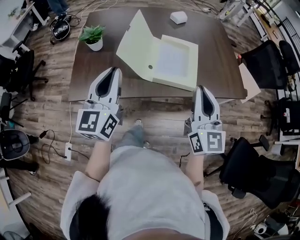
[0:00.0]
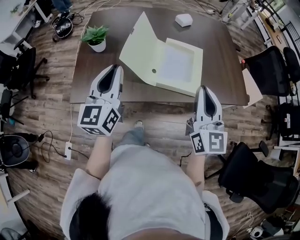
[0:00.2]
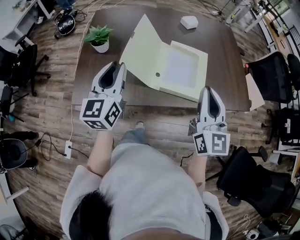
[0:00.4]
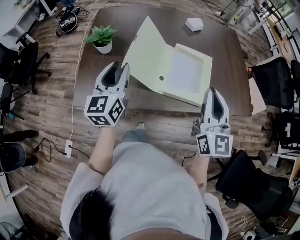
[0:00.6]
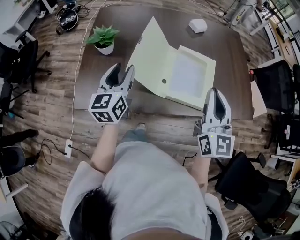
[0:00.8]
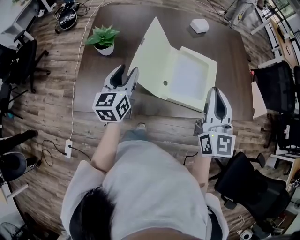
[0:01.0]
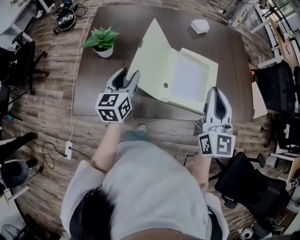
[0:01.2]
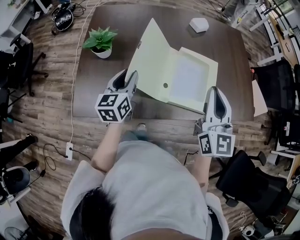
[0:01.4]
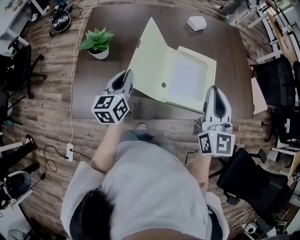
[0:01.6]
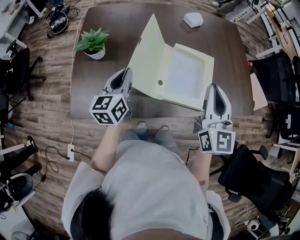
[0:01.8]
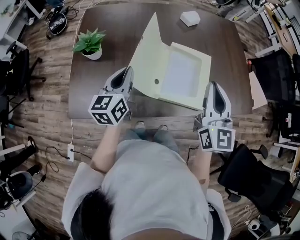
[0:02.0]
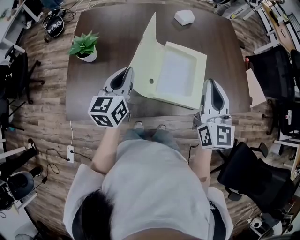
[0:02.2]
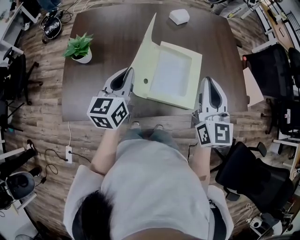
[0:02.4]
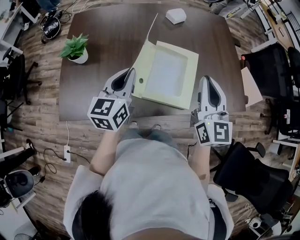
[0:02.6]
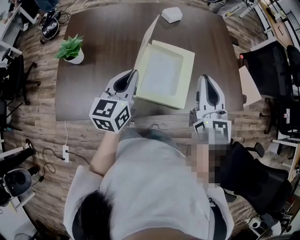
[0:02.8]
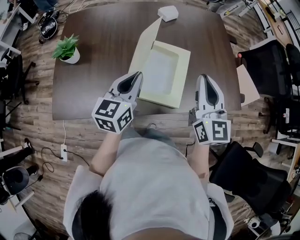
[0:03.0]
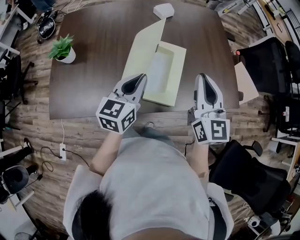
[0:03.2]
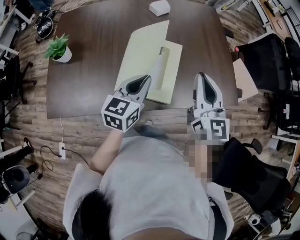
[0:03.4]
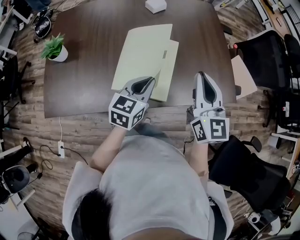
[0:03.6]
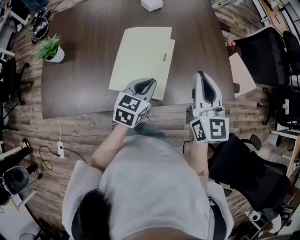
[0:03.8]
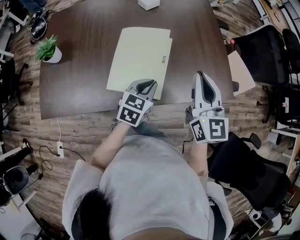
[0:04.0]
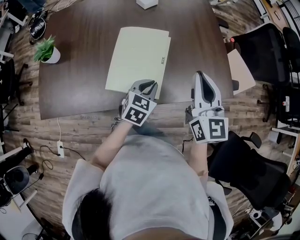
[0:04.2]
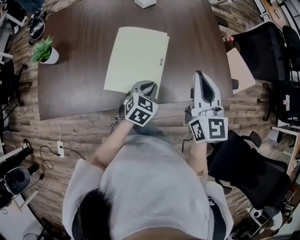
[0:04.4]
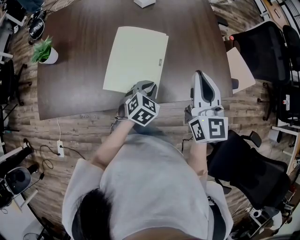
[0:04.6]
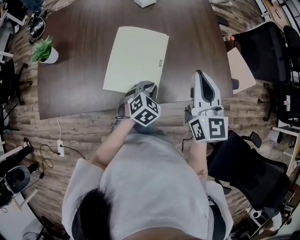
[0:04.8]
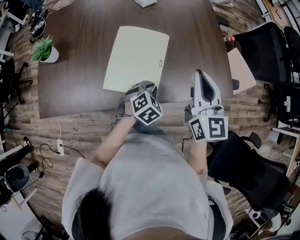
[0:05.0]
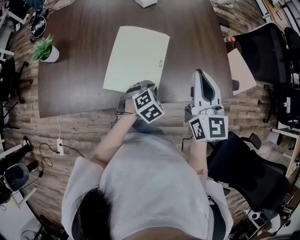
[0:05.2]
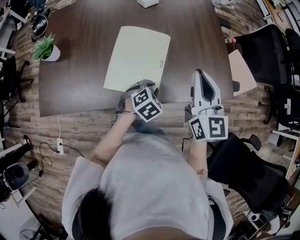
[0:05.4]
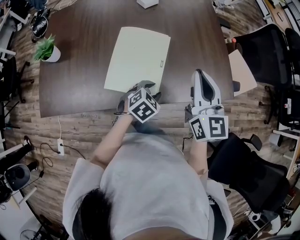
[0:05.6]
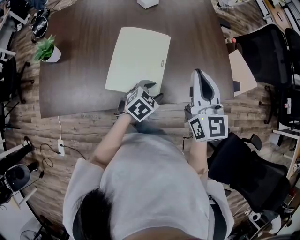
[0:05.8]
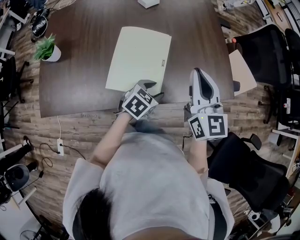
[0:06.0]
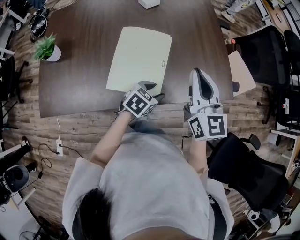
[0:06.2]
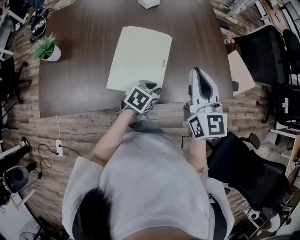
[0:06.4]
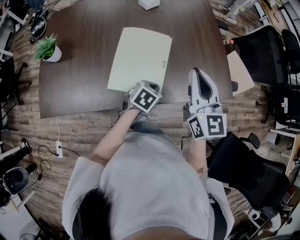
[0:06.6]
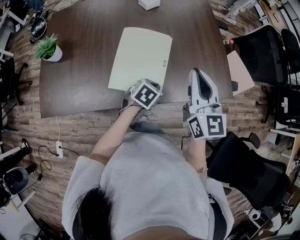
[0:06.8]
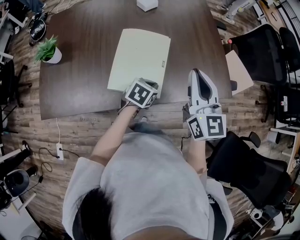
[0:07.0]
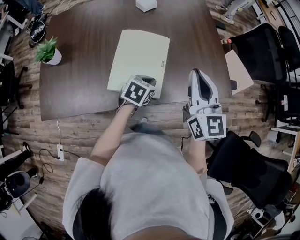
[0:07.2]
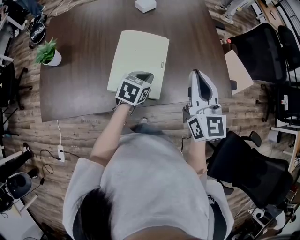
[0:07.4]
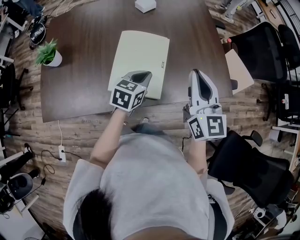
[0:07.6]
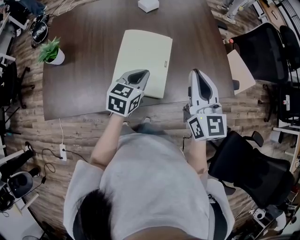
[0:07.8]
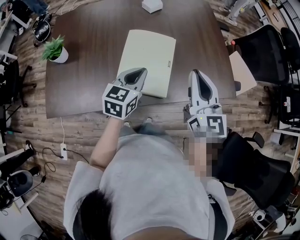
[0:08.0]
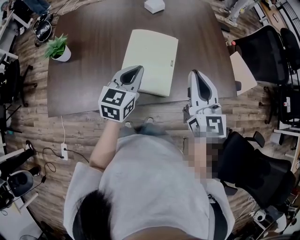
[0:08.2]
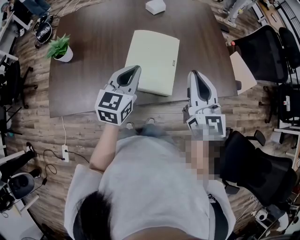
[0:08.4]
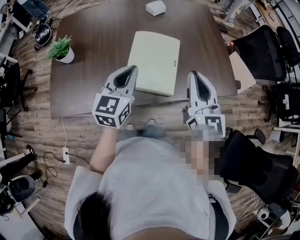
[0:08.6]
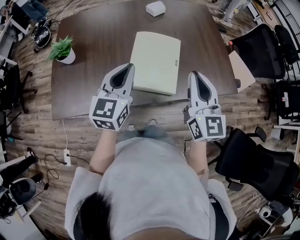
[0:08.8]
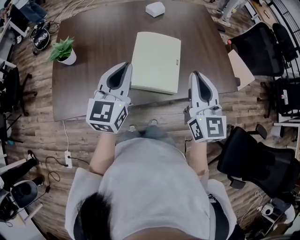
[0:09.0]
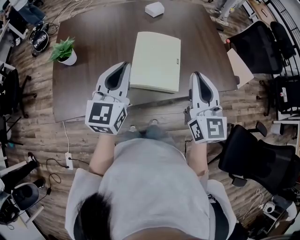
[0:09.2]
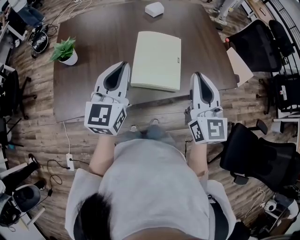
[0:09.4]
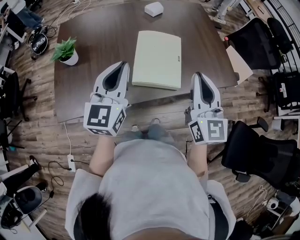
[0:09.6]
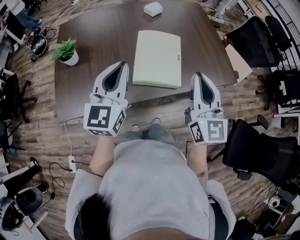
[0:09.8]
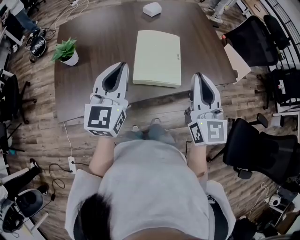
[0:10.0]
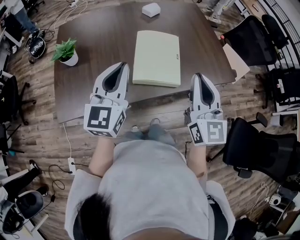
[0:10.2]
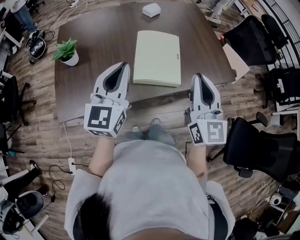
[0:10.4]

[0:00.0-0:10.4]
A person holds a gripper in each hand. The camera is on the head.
0:00.0 to 0:01.4: The left gripper heads forward and downward, covering some 25 cm, turns by about 20 degrees, and opens up. The right gripper travels forward by roughly 15 cm.
0:01.4 to 0:03.0: The left gripper moves to the right, approximately 20 cm, and closes; the right gripper moves to the right, some 15 cm.
0:03.0 to 0:04.4: The right gripper goes approximately 10 cm to the right. The left gripper travels to the right and downward by about 25 cm, and changes its angle by some 40 degrees.
0:04.4 to 0:06.0: The left gripper opens.
0:06.0 to 0:07.4: The left gripper goes approximately 5 cm to the left, and closes.
0:07.4 to 0:09.0: The right gripper moves to the left and backward, approximately 10 cm; the left gripper goes about 25 cm upward, to the left and backward, and tips its fingers upward by about 40 degrees.
0:09.0 to 0:10.4: Both grippers move backward, some 5 cm.

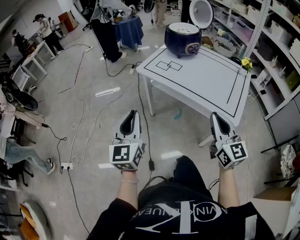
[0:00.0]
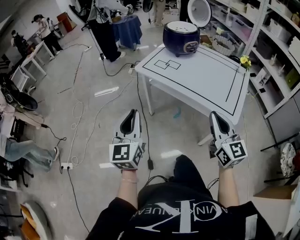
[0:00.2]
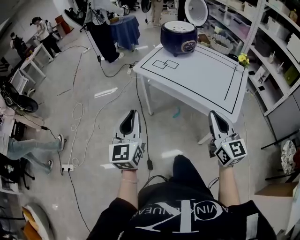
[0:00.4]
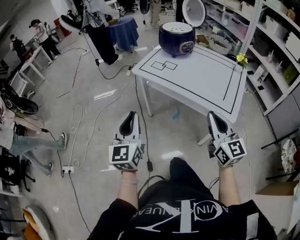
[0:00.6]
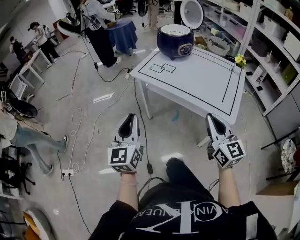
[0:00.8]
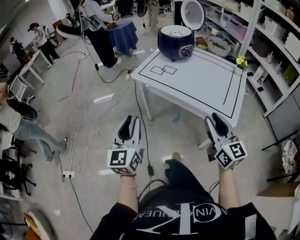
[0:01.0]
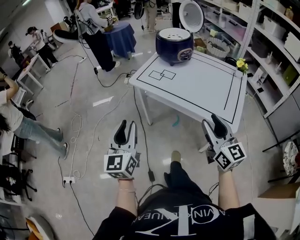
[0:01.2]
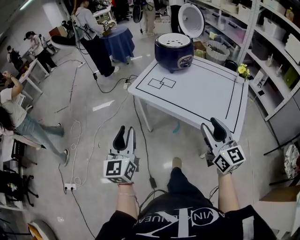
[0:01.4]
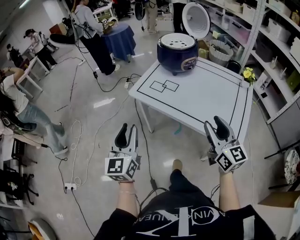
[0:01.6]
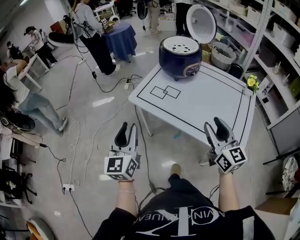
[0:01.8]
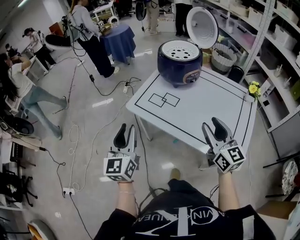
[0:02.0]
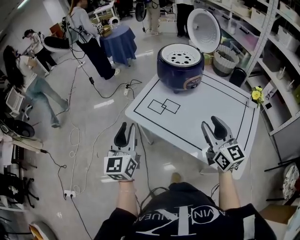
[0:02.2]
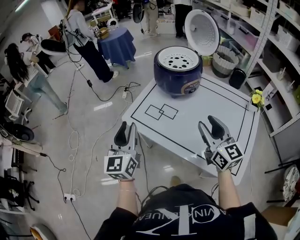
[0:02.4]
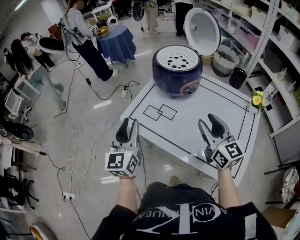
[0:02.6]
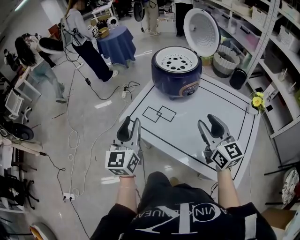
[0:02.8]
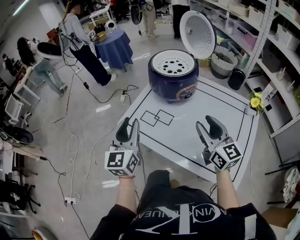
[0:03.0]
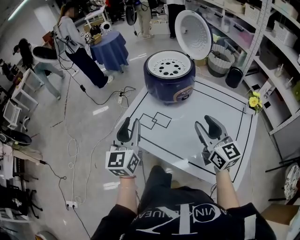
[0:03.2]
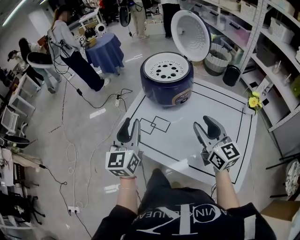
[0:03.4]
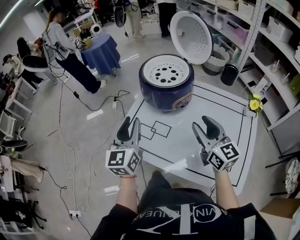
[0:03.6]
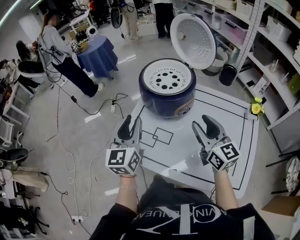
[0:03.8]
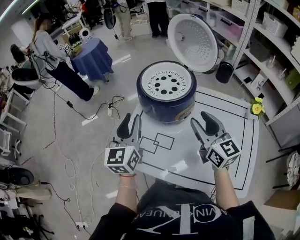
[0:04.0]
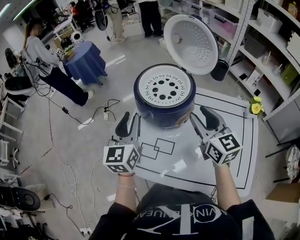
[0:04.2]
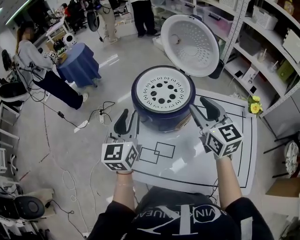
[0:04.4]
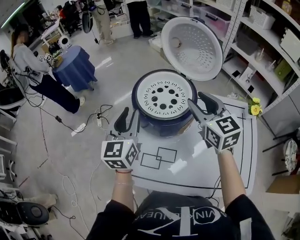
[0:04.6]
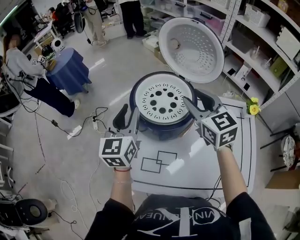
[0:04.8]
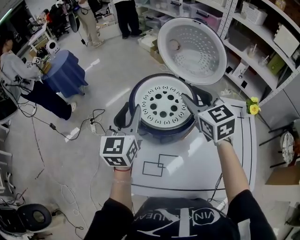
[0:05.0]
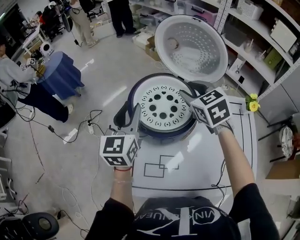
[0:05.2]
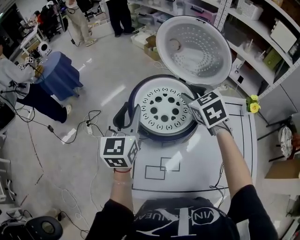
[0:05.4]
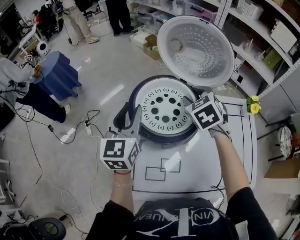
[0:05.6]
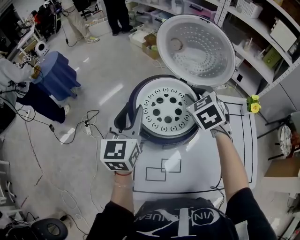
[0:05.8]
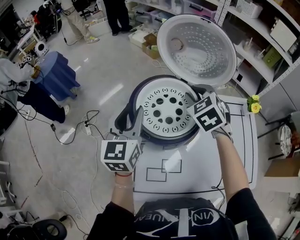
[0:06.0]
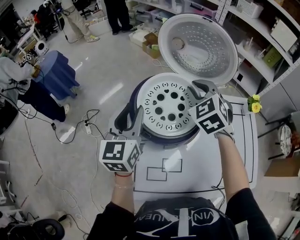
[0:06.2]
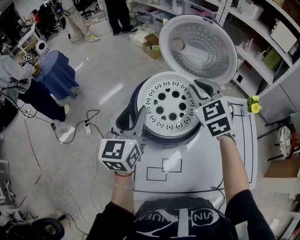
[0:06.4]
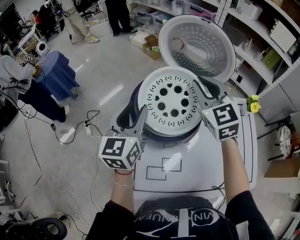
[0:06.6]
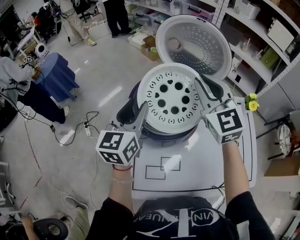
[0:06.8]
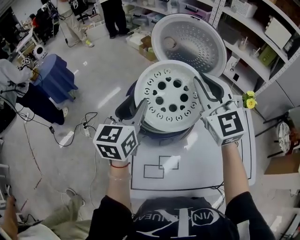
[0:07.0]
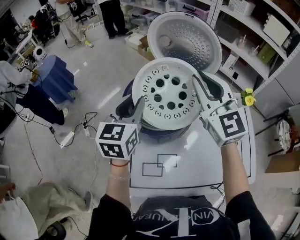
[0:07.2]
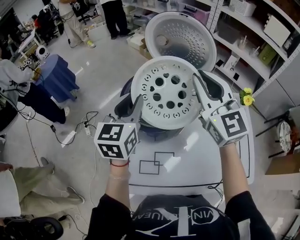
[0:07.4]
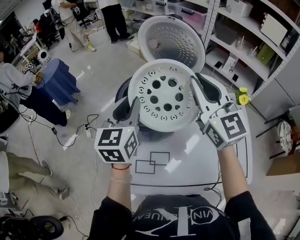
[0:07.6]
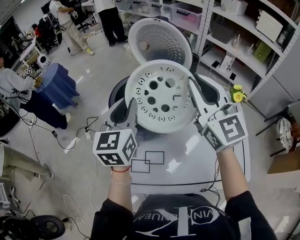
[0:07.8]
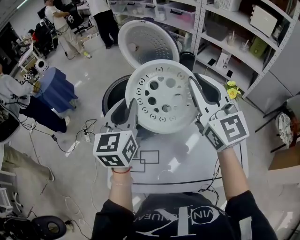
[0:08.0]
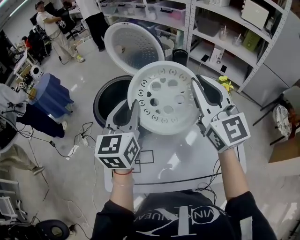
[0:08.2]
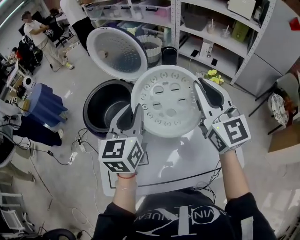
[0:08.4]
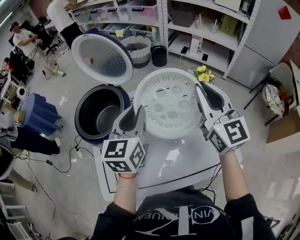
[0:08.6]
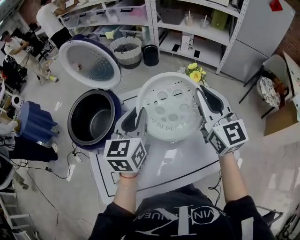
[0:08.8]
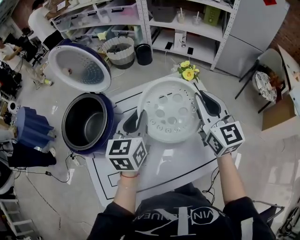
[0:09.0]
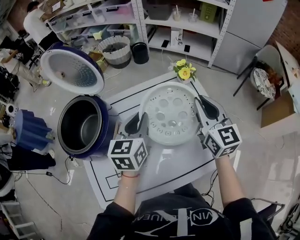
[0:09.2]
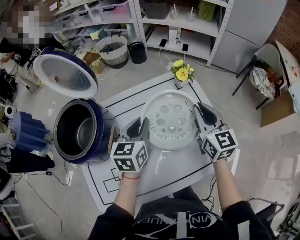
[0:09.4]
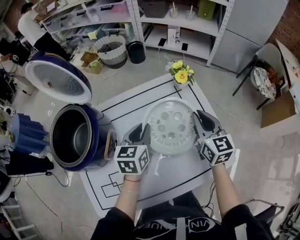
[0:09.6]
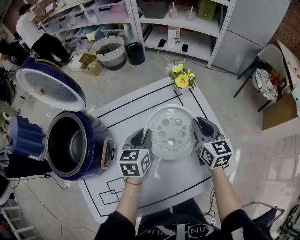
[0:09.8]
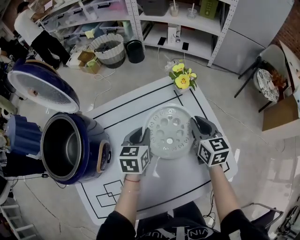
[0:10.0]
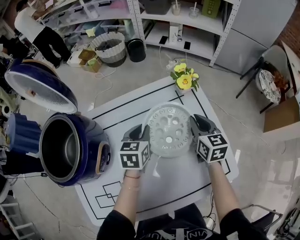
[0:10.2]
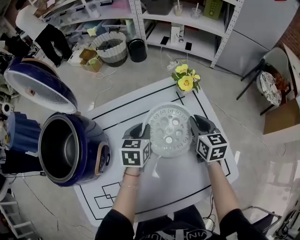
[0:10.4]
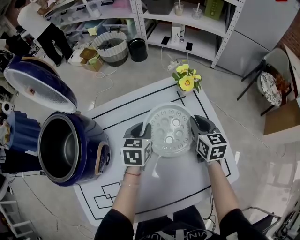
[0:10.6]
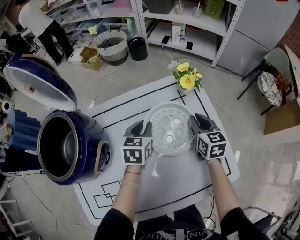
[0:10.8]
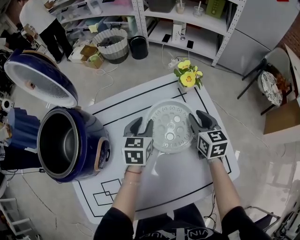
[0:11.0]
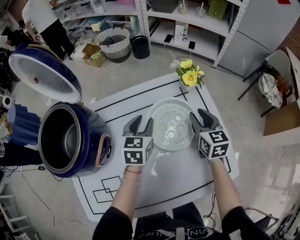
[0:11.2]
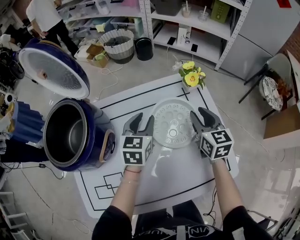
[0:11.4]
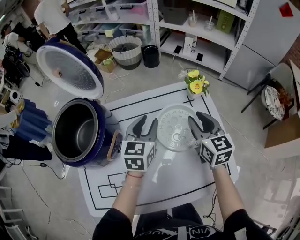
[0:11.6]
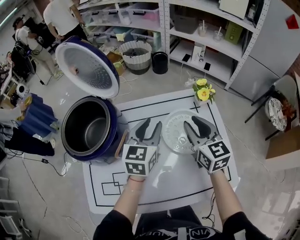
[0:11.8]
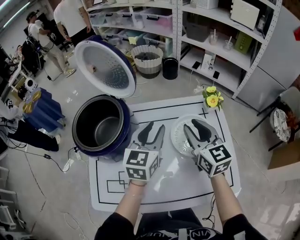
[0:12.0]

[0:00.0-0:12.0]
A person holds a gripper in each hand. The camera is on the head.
0:00.0 to 0:01.6: Both grippers move forward, about 15 cm. The right gripper opens.
0:01.6 to 0:03.0: The left gripper travels forward and to the right by about 25 cm. The right gripper goes approximately 25 cm forward.
0:03.0 to 0:04.4: The two grippers go approximately 25 cm forward. The right gripper rotates about 20 degrees.
0:04.4 to 0:06.0: Both grippers move forward, some 15 cm. The right gripper angles its fingers downward, by roughly 30 degrees.
0:06.0 to 0:07.6: The right gripper goes approximately 20 cm upward, backward and to the right, and tips its fingers upward by roughly 50 degrees, while the left gripper is displaced to the right by roughly 10 cm.
0:07.6 to 0:09.0: The right gripper ends up about 30 cm from where it was, and turns by approximately 30 degrees. The left gripper changes place by some 25 cm, and changes its angle by approximately 30 degrees.
0:09.0 to 0:10.4: The left gripper moves downward and forward, about 20 cm, and rotates about 20 degrees; the right gripper shifts some 25 cm downward, and changes its angle by about 30 degrees.
0:10.4 to 0:12.0: The right gripper is displaced upward and to the left by approximately 20 cm, and swivels about 30 degrees. Meanwhile the left gripper travels upward by approximately 15 cm, and changes its angle by roughly 30 degrees.

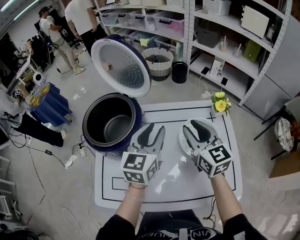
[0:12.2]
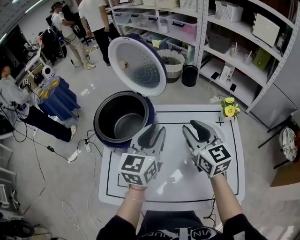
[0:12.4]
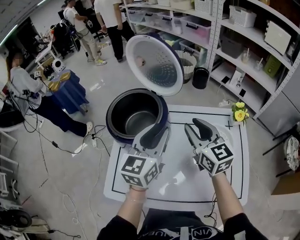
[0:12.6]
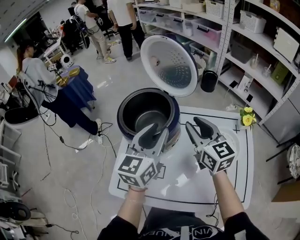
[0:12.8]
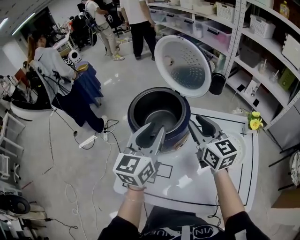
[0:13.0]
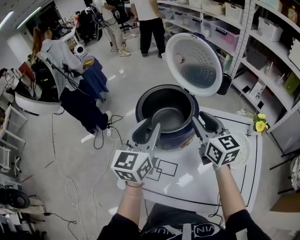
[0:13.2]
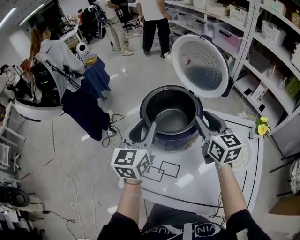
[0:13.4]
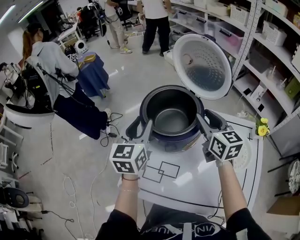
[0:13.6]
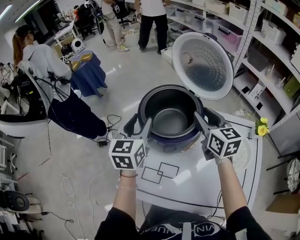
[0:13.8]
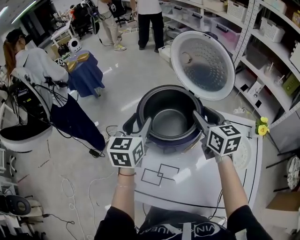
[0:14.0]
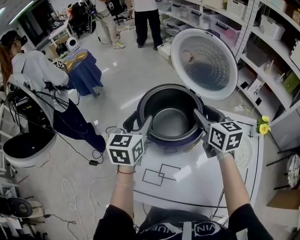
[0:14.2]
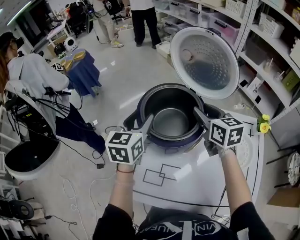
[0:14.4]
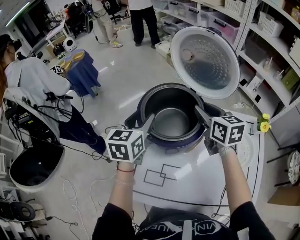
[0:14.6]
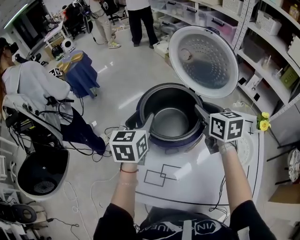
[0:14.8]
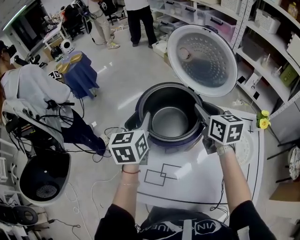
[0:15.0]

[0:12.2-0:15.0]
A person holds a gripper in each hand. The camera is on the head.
0:12.2 to 0:13.6: The right gripper moves to the left and forward, approximately 20 cm; the left gripper travels to the left by roughly 30 cm, and swivels approximately 30 degrees.
0:13.6 to 0:15.0: Both grippers travel together forward, roughly 5 cm.
